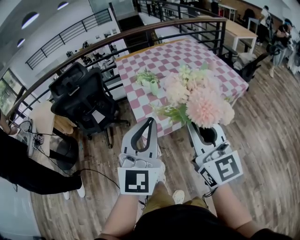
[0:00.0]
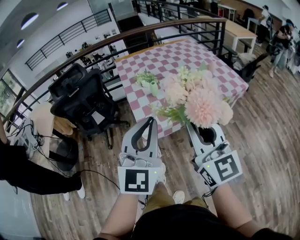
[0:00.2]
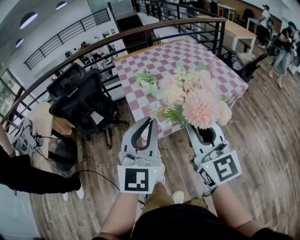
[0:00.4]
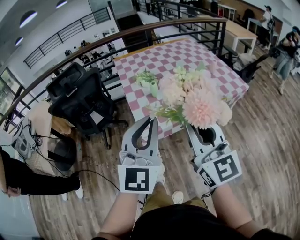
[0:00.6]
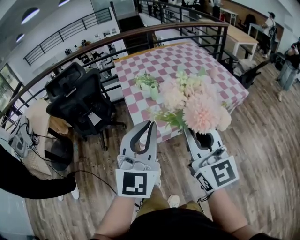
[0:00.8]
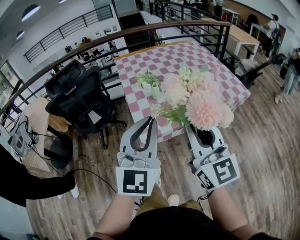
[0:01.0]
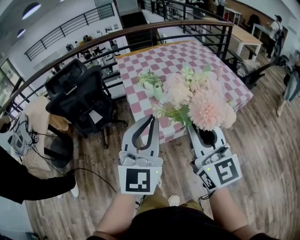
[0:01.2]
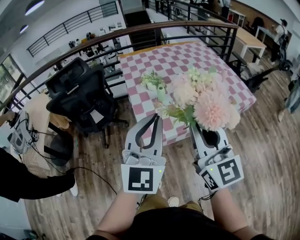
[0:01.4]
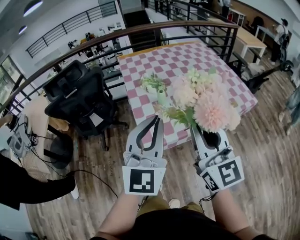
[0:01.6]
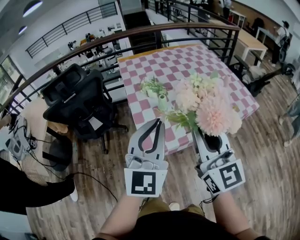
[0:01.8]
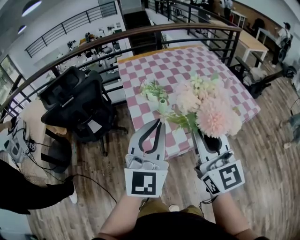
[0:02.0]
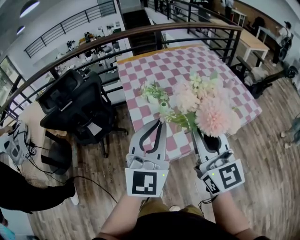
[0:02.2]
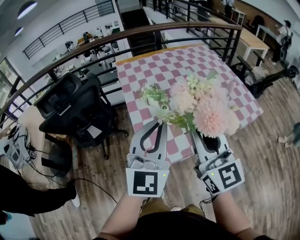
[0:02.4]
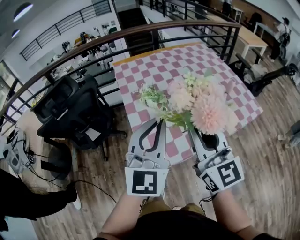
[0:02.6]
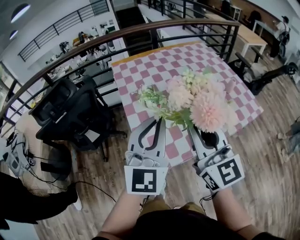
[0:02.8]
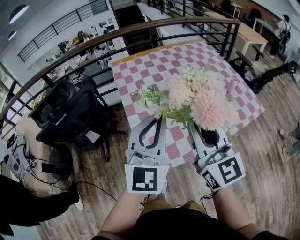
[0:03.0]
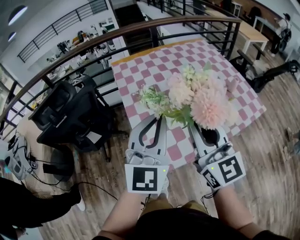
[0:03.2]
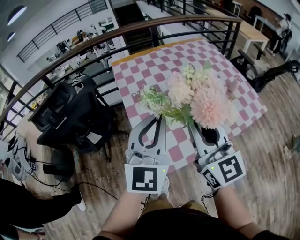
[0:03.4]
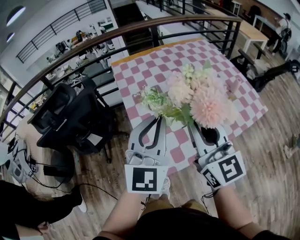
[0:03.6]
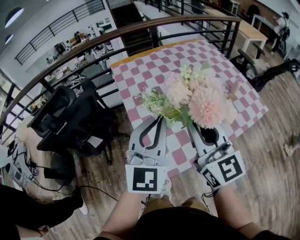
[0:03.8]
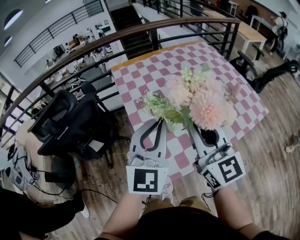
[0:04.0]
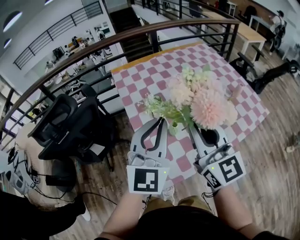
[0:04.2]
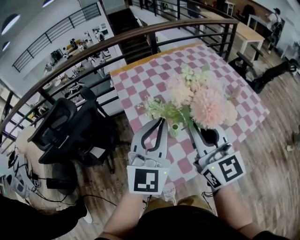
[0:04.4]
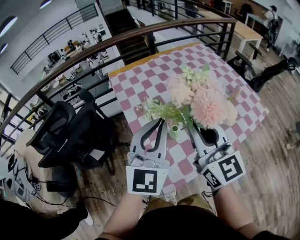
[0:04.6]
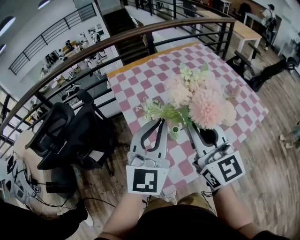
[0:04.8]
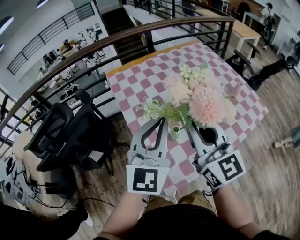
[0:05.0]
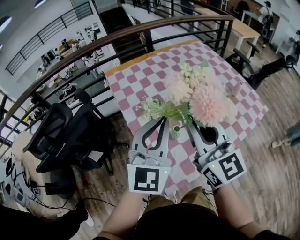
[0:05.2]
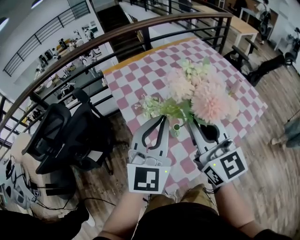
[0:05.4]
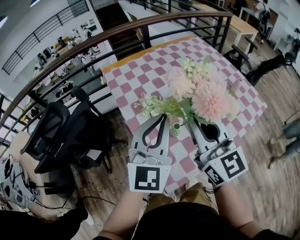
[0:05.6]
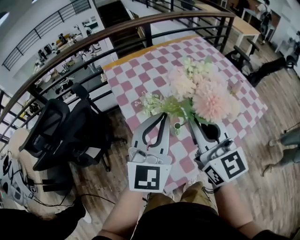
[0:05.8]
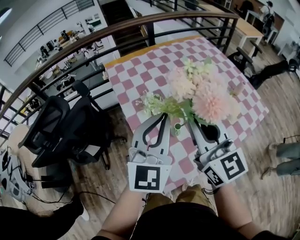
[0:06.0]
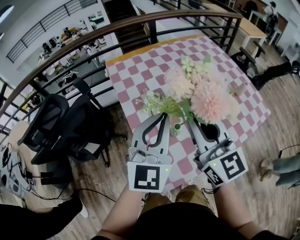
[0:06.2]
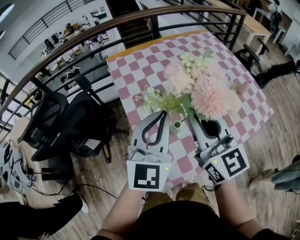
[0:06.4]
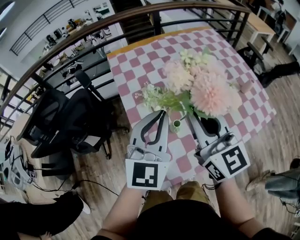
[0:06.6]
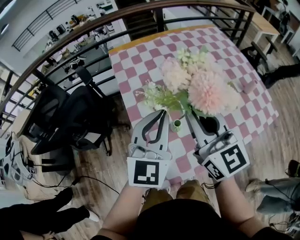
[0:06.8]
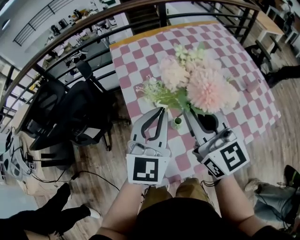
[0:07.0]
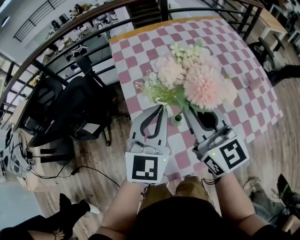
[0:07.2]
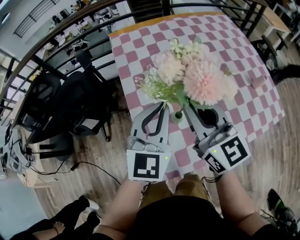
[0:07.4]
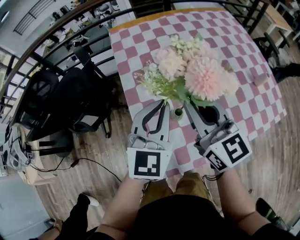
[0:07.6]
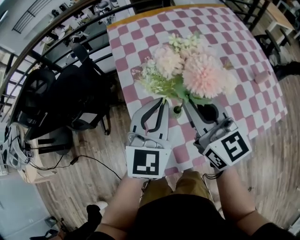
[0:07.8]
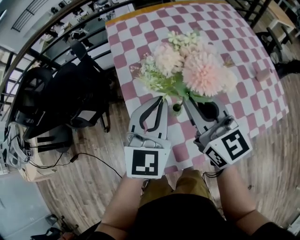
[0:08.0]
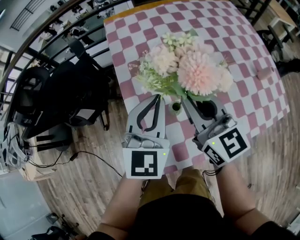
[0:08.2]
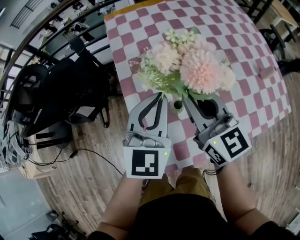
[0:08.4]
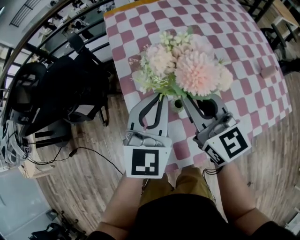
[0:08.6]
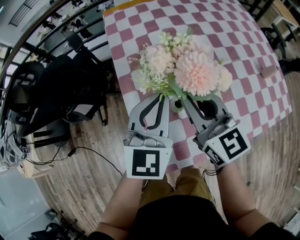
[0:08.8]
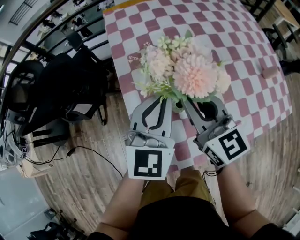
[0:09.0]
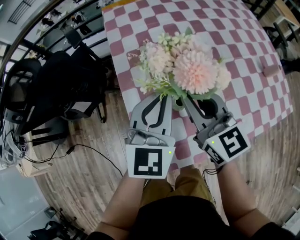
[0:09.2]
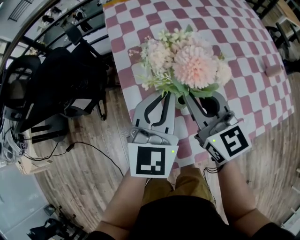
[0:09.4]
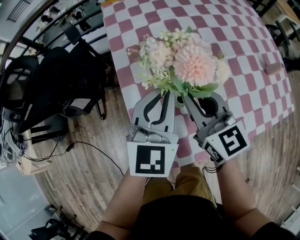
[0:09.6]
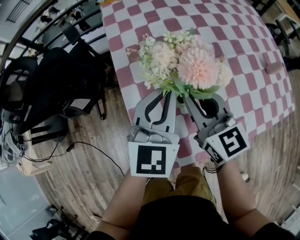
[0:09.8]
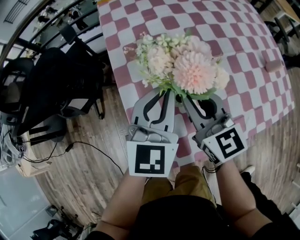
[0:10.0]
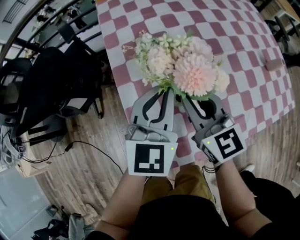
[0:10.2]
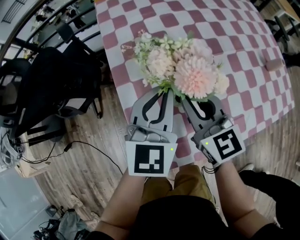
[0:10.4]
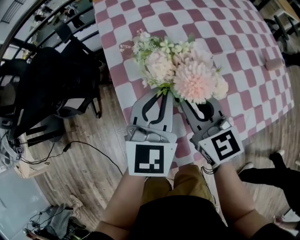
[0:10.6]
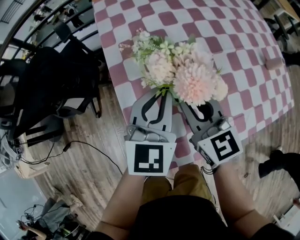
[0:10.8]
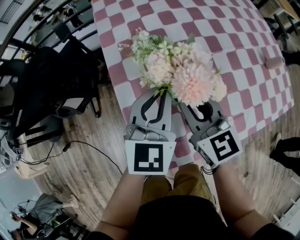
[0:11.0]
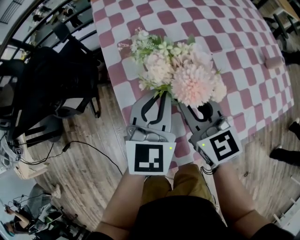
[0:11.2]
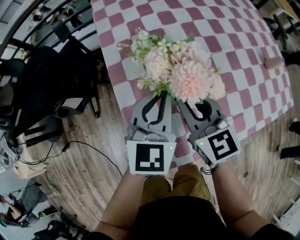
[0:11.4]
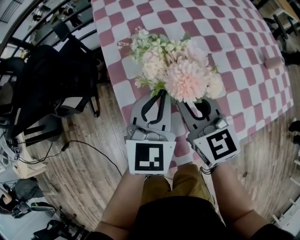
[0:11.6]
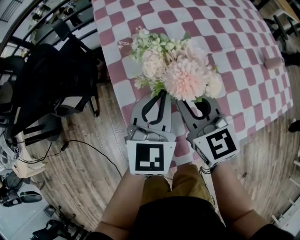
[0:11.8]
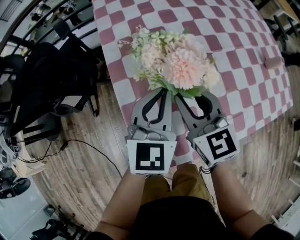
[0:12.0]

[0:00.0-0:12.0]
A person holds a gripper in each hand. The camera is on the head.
0:00.0 to 0:01.6: The grippers both shift forward by some 10 cm.
0:01.6 to 0:03.0: Both grippers travel together forward, some 20 cm.
0:03.0 to 0:04.4: The grippers both shift forward by about 10 cm.
0:04.4 to 0:06.0: The left gripper ends up roughly 5 cm from where it was.
0:06.0 to 0:07.6: The right gripper is displaced downward and forward by about 10 cm. Meanwhile the left gripper is displaced downward by about 10 cm.
0:07.6 to 0:09.0: The left gripper changes place by roughly 5 cm; the right gripper moves downward, some 10 cm.
0:09.0 to 0:10.4: The right gripper heads downward, covering approximately 5 cm.
0:10.4 to 0:12.0: The grippers make only small movements.

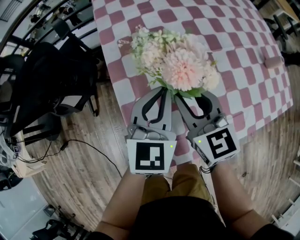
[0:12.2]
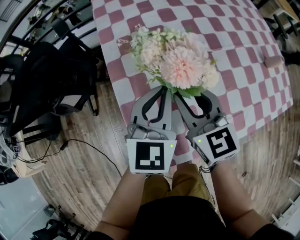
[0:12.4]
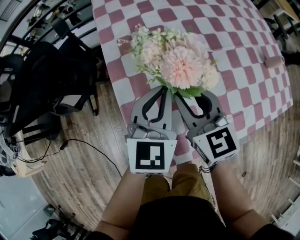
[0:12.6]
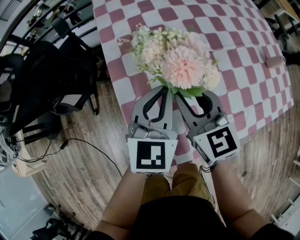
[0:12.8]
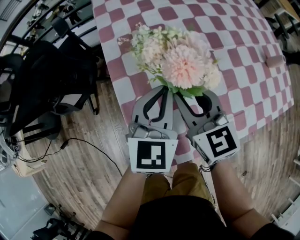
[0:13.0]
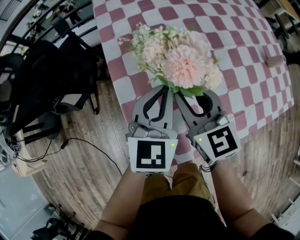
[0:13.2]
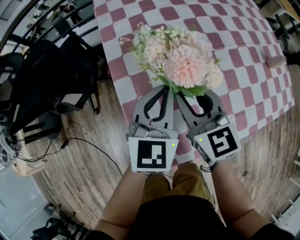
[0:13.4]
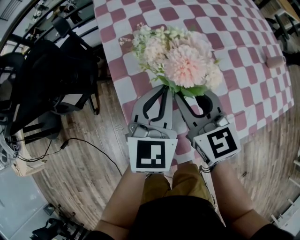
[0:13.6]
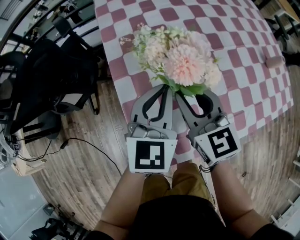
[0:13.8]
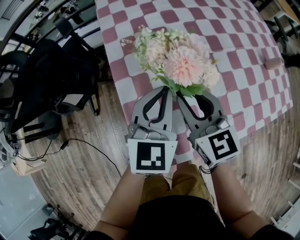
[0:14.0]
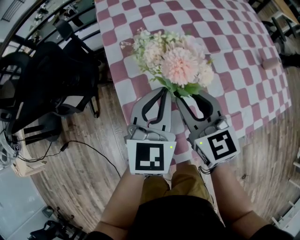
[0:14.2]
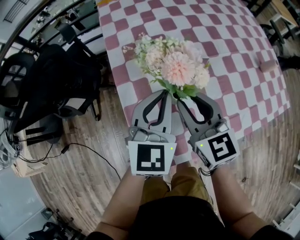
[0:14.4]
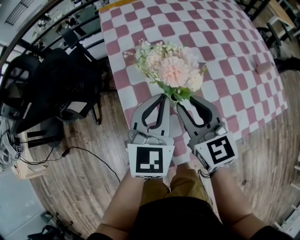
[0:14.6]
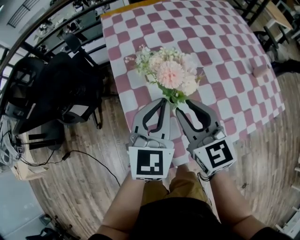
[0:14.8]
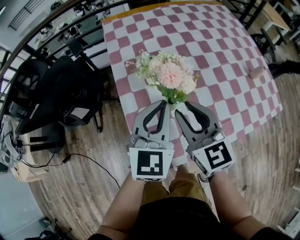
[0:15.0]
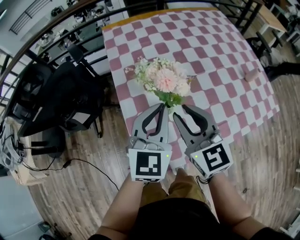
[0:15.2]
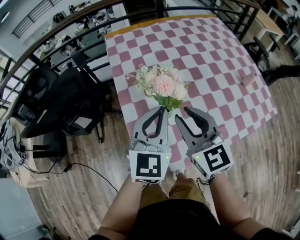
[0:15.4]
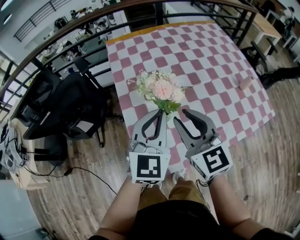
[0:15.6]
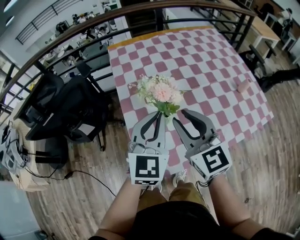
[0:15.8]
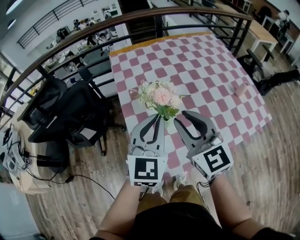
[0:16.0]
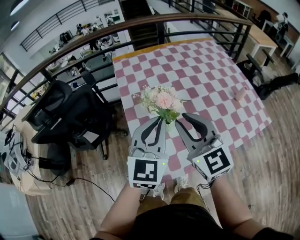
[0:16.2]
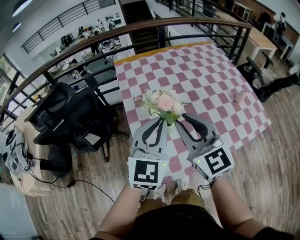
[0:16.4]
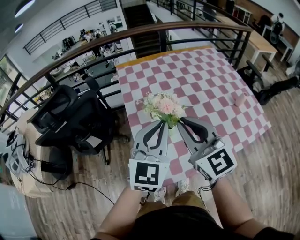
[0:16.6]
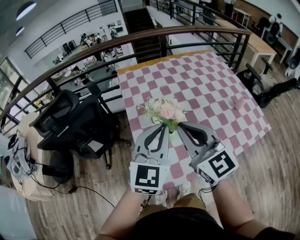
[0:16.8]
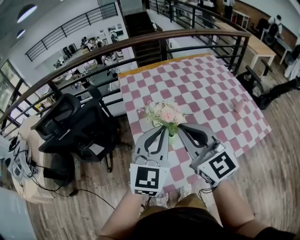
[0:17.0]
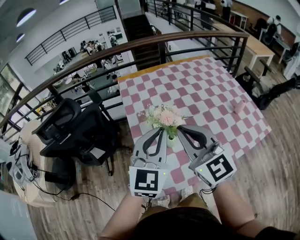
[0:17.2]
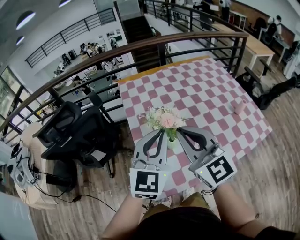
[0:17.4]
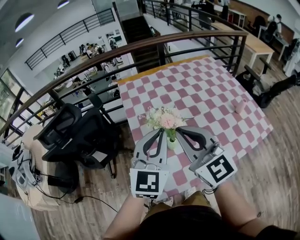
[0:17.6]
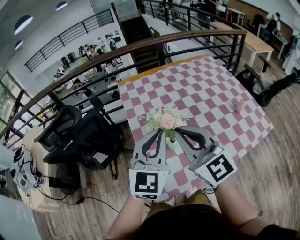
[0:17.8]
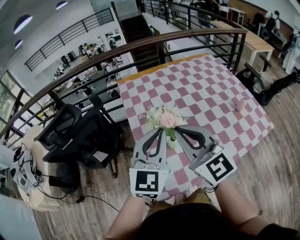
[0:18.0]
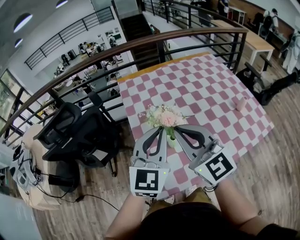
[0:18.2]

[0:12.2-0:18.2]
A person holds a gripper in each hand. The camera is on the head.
0:12.2 to 0:13.8: Both grippers stay about where they are.
0:13.8 to 0:15.2: The left gripper heads upward, covering about 10 cm, while the right gripper travels upward and backward by some 10 cm.
0:15.2 to 0:16.6: Both grippers move upward, approximately 10 cm.
0:16.6 to 0:18.2: There are only small adjustments of the grippers.

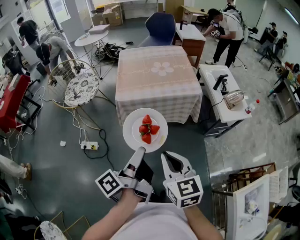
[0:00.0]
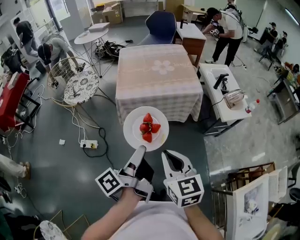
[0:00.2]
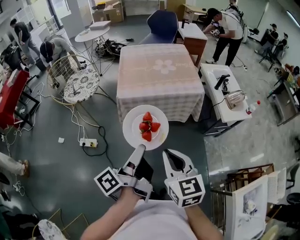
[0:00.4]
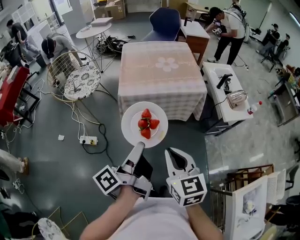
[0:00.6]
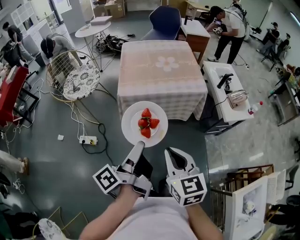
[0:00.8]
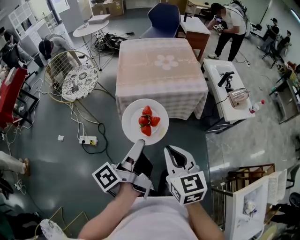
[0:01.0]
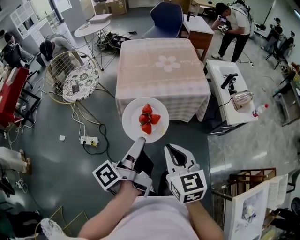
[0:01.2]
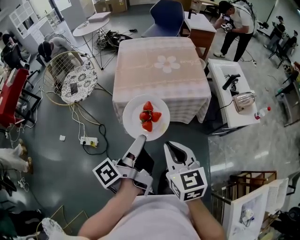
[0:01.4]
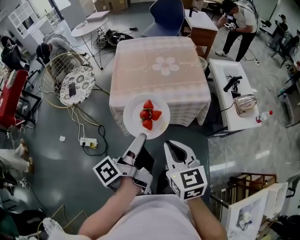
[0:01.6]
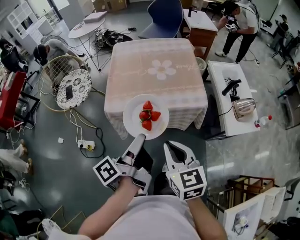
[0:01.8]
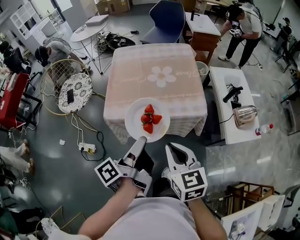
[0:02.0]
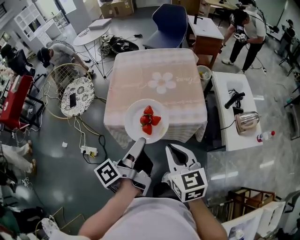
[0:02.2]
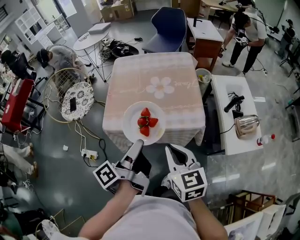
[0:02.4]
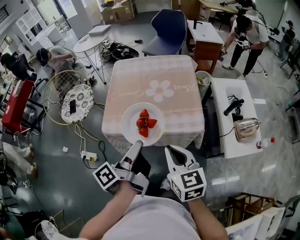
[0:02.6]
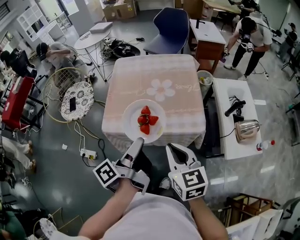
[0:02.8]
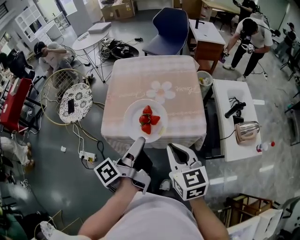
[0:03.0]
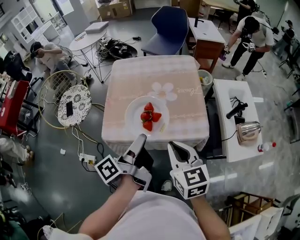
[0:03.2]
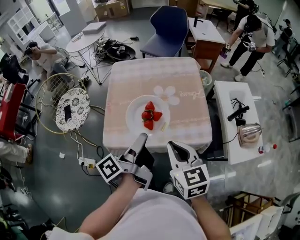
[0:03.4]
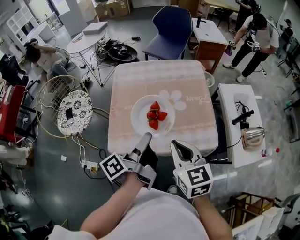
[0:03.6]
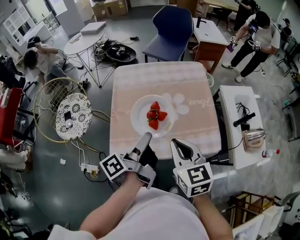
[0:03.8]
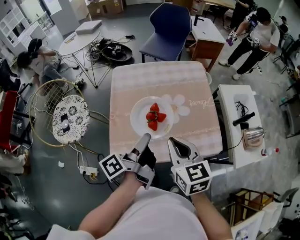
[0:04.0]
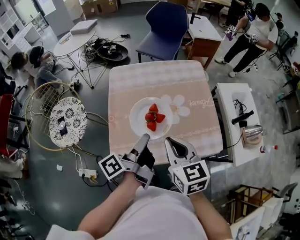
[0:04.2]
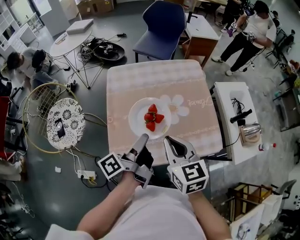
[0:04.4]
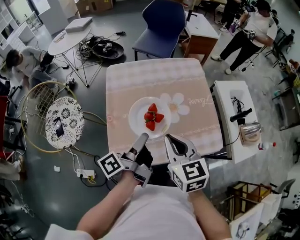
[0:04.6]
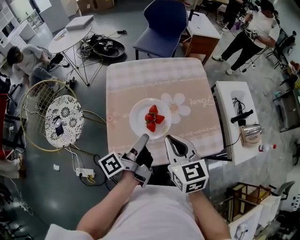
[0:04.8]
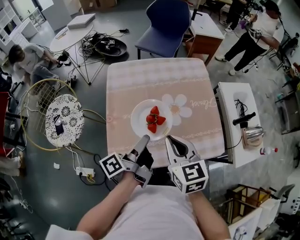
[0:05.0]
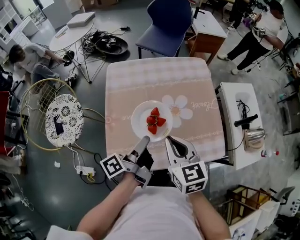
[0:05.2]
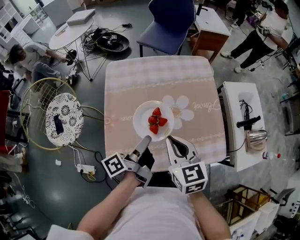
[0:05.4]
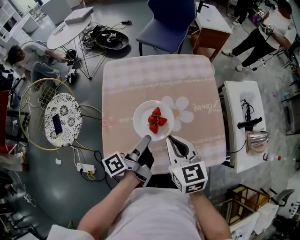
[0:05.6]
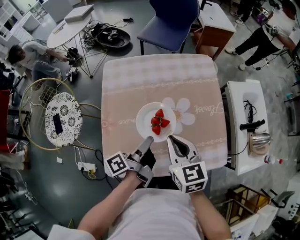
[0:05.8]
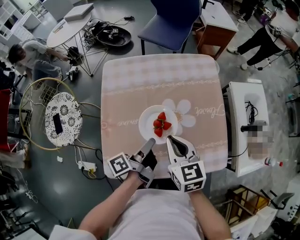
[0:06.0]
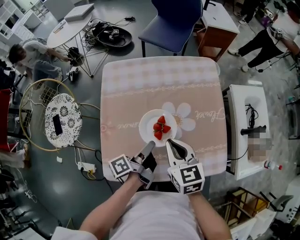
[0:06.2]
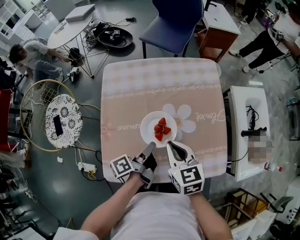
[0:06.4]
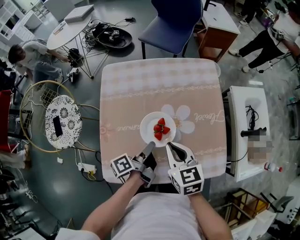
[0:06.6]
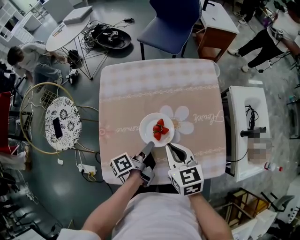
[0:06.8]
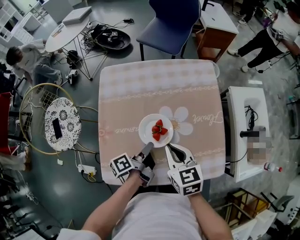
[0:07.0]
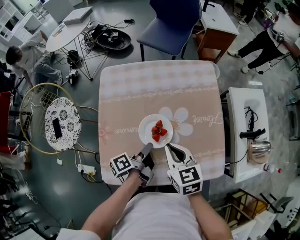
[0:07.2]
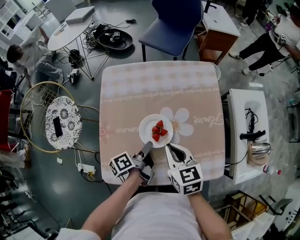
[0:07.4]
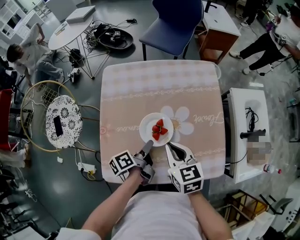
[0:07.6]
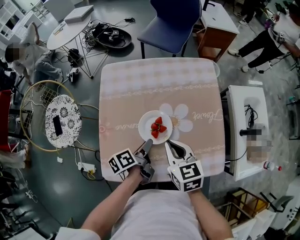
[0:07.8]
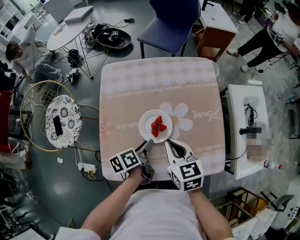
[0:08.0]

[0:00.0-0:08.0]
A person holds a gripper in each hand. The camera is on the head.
0:00.0 to 0:01.6: The right gripper moves about 15 cm.
0:01.6 to 0:03.2: The right gripper shifts by roughly 20 cm.
0:03.2 to 0:04.8: The right gripper shifts by roughly 20 cm.
0:04.8 to 0:06.4: The right gripper is displaced downward by about 10 cm.
